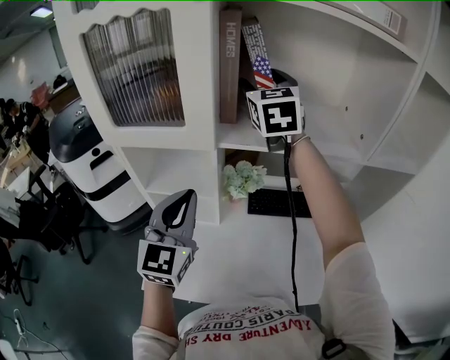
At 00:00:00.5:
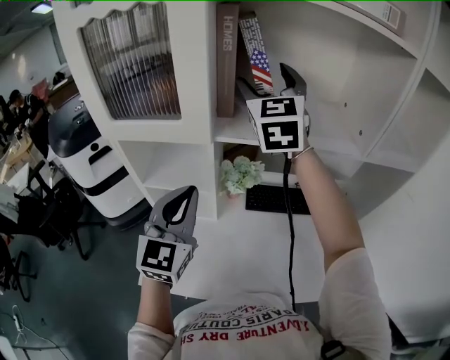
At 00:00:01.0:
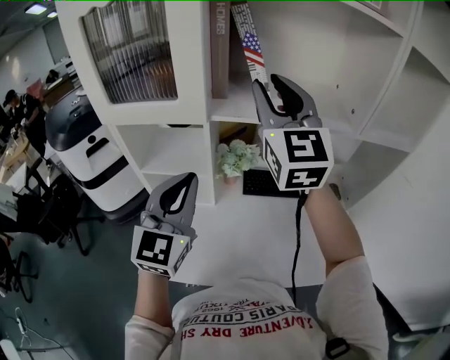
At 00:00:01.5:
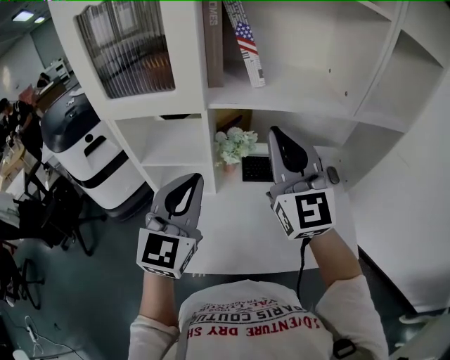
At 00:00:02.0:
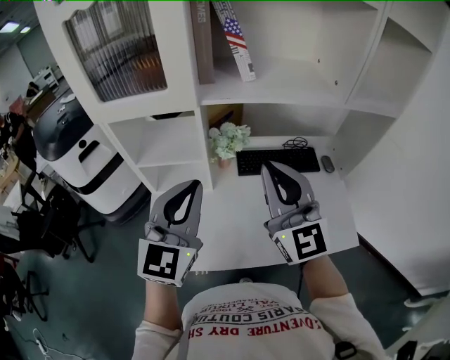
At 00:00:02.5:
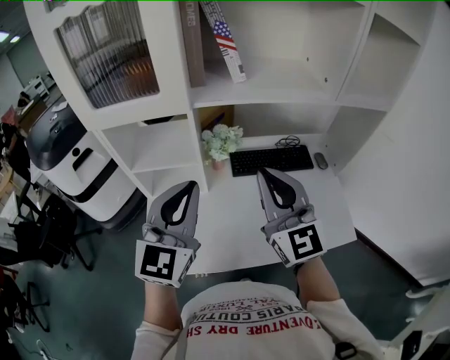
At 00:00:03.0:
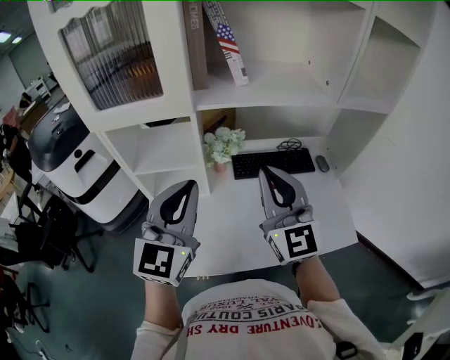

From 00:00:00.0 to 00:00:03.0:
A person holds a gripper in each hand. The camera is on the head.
From 00:00:00.0 to 00:00:01.5: The left gripper goes roughly 5 cm backward. Meanwhile the right gripper shifts approximately 25 cm backward, and closes its fingers.
From 00:00:01.5 to 00:00:03.0: The right gripper is displaced downward and backward by roughly 10 cm.

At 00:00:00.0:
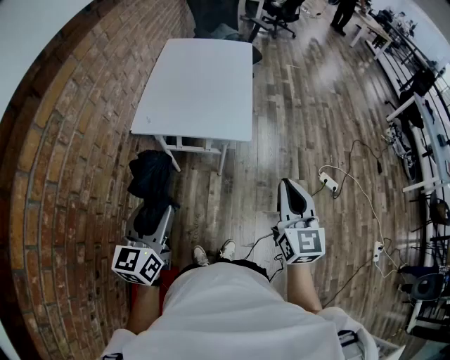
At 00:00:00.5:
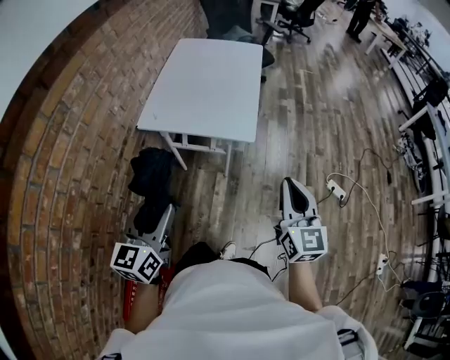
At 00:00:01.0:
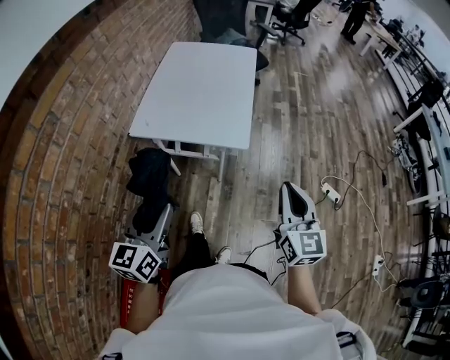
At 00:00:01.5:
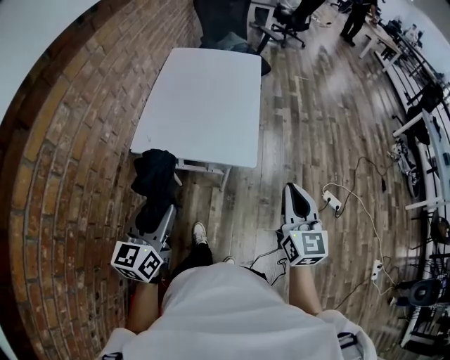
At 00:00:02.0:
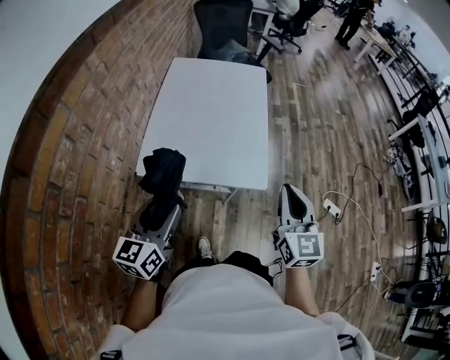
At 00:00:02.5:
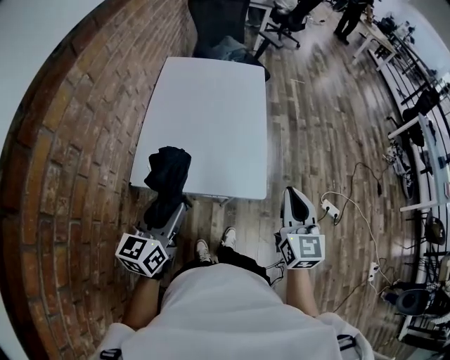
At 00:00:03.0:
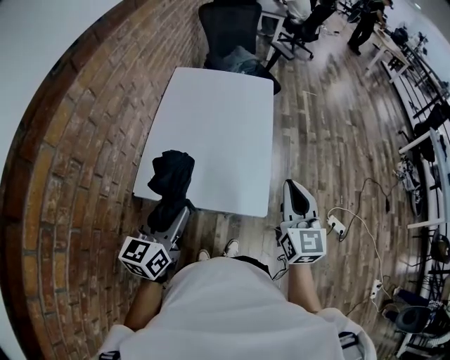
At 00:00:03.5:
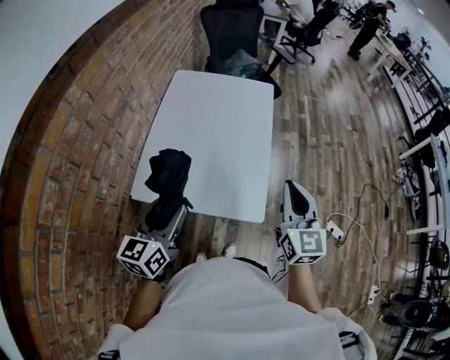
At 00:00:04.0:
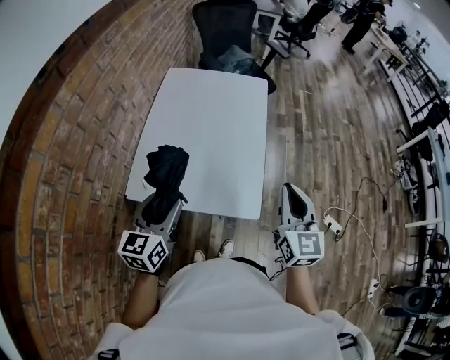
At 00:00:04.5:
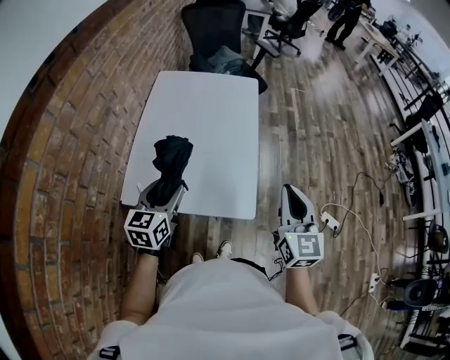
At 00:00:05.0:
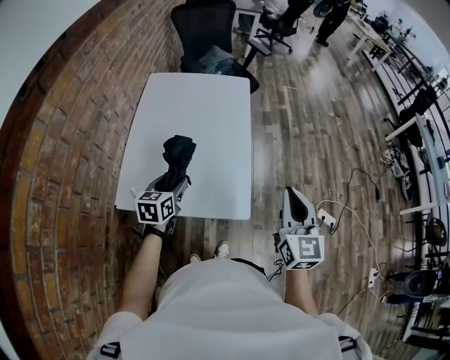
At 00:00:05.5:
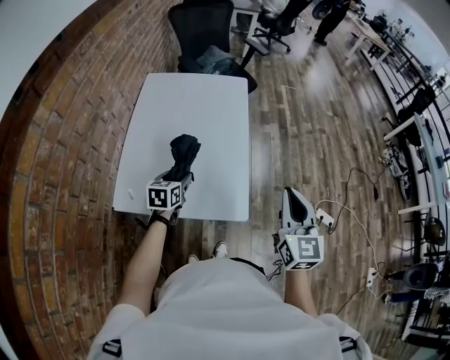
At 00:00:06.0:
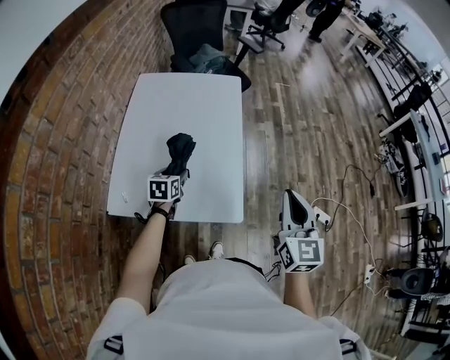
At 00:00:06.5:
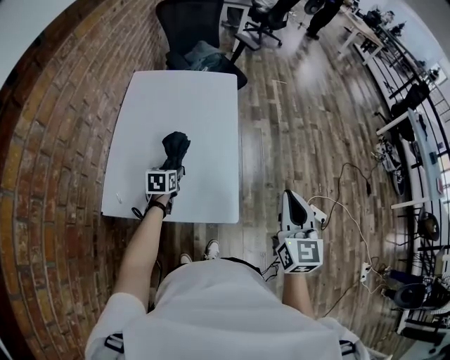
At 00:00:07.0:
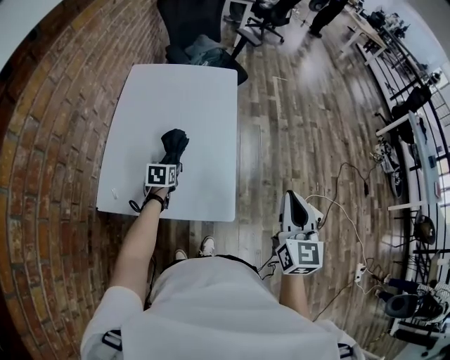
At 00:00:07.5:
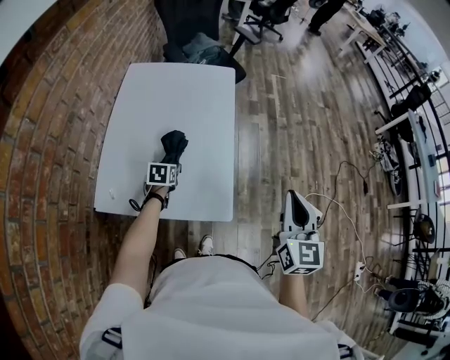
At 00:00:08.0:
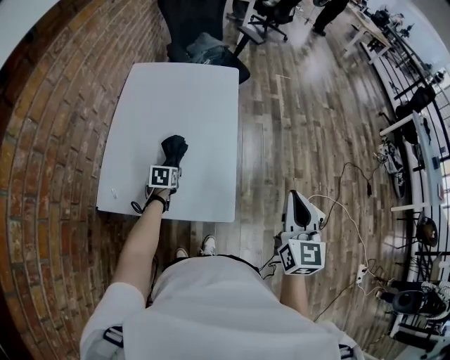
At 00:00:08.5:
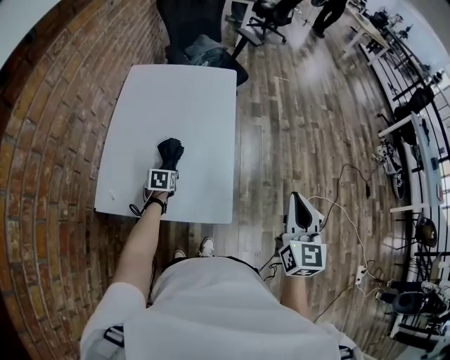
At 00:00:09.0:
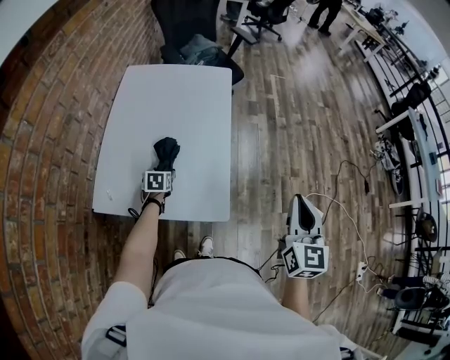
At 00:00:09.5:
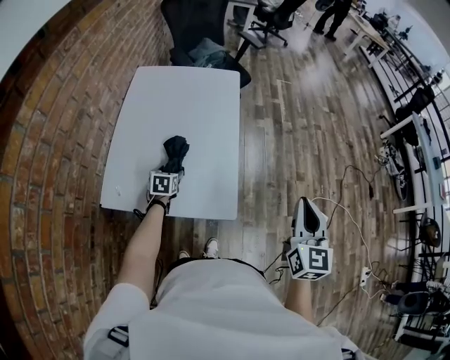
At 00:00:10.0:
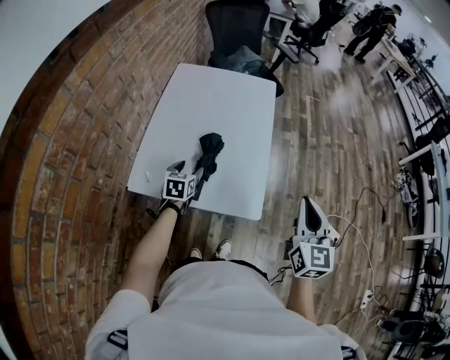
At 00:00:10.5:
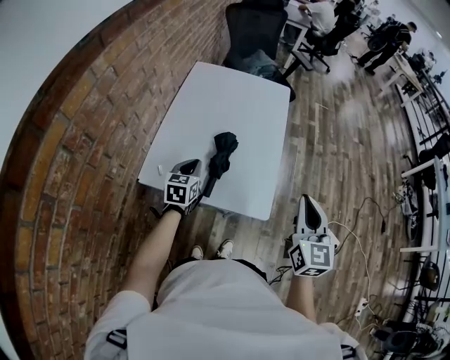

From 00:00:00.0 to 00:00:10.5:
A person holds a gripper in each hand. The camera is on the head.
From 00:00:00.0 to 00:00:02.0: The grippers both shift forward by about 20 cm.
From 00:00:02.0 to 00:00:04.0: The two grippers go about 15 cm forward.
From 00:00:04.0 to 00:00:06.5: The right gripper moves to the right, some 10 cm, while the left gripper travels downward and forward by roughly 30 cm, and turns by about 30 degrees.
From 00:00:06.5 to 00:00:08.5: The left gripper is displaced downward by some 5 cm.
From 00:00:08.5 to 00:00:10.5: The left gripper heads upward, backward and to the left, covering about 20 cm, turns by about 30 degrees, and closes its fingers, while the right gripper shifts some 10 cm to the left.

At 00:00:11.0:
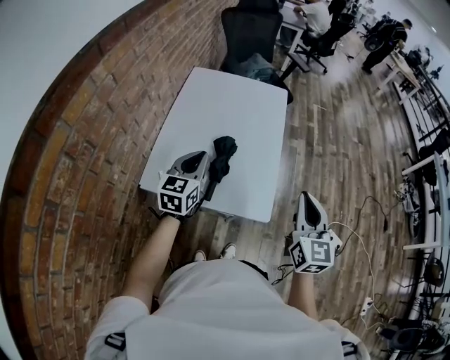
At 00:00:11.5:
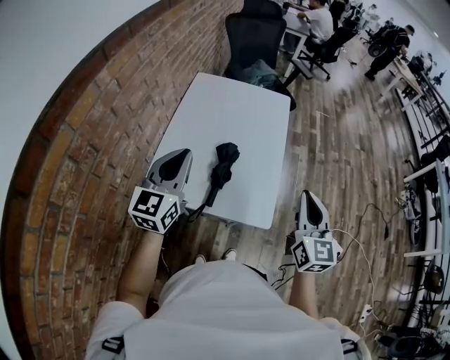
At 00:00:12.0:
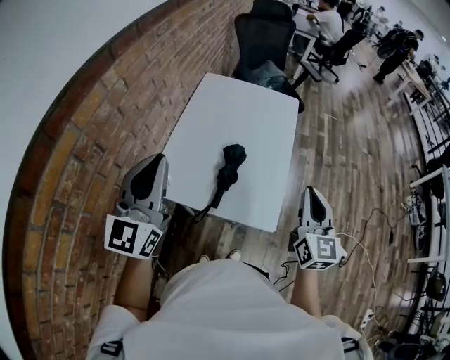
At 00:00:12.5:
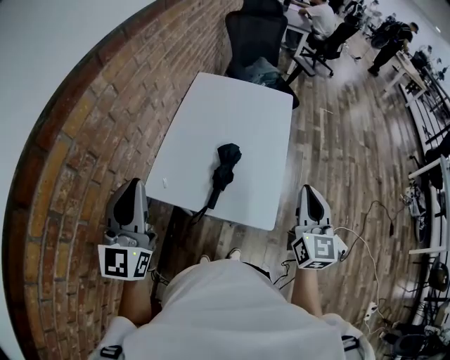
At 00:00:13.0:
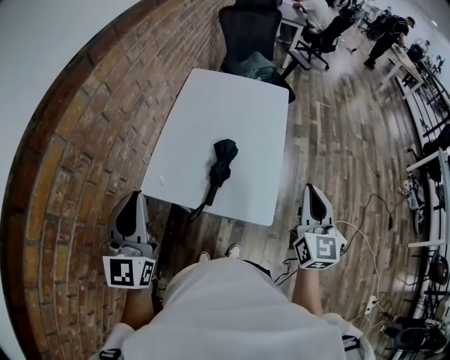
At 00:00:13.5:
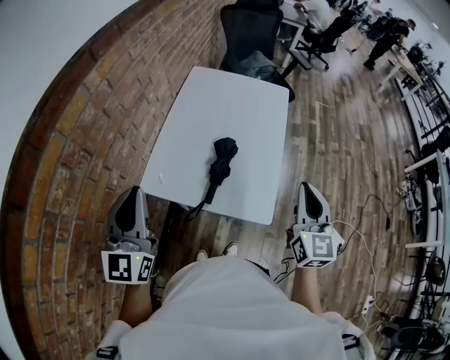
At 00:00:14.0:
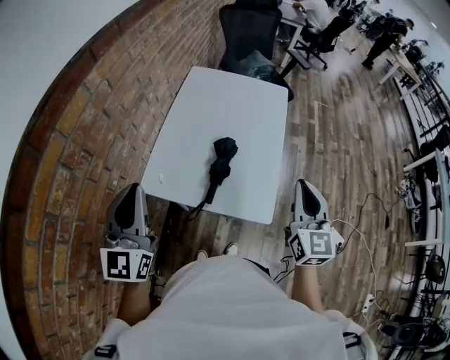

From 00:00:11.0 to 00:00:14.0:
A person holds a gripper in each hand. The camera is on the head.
From 00:00:11.0 to 00:00:12.5: The left gripper is displaced upward, backward and to the left by some 25 cm, and swivels approximately 30 degrees.
From 00:00:12.5 to 00:00:14.0: There are only small adjustments of the grippers.

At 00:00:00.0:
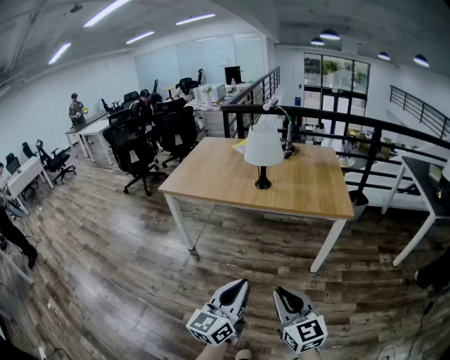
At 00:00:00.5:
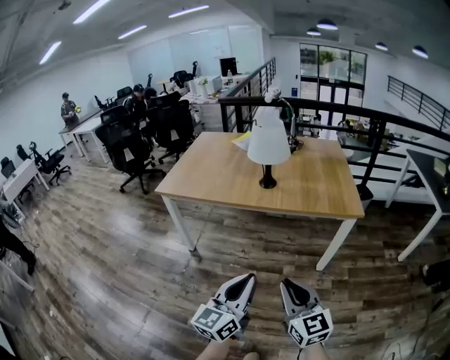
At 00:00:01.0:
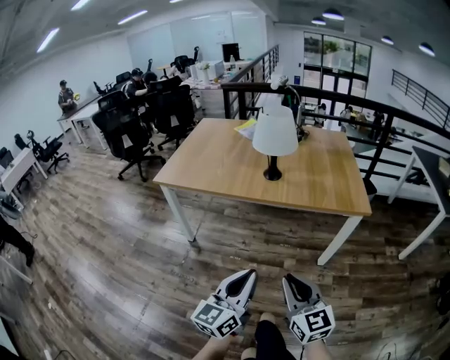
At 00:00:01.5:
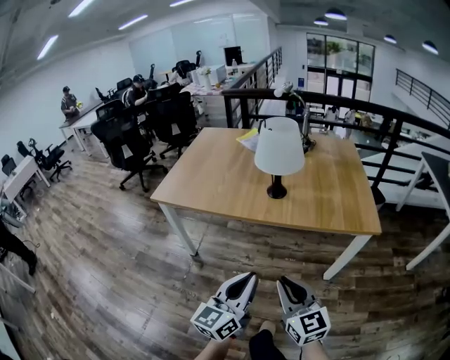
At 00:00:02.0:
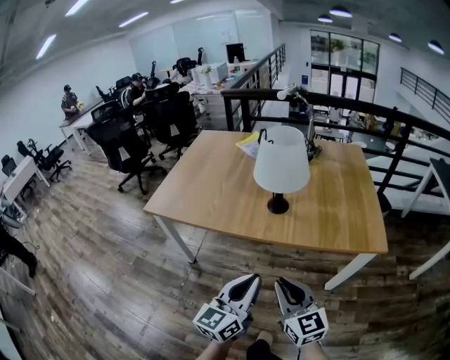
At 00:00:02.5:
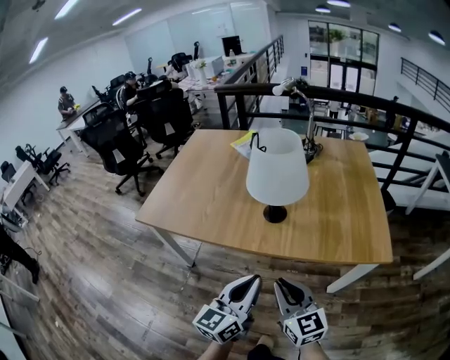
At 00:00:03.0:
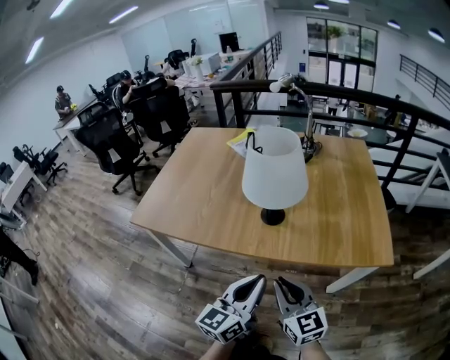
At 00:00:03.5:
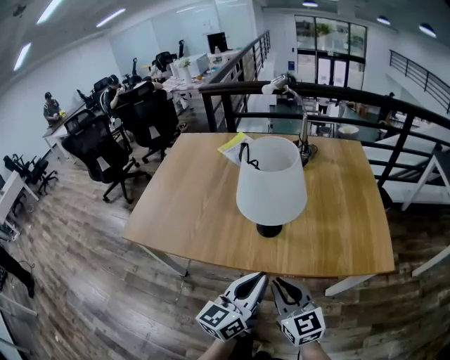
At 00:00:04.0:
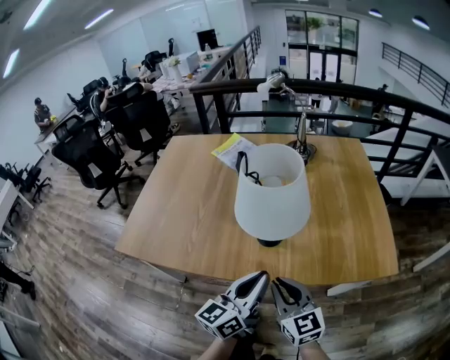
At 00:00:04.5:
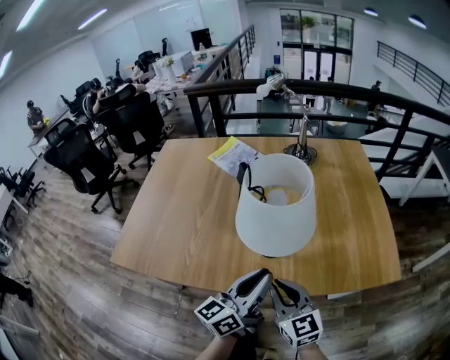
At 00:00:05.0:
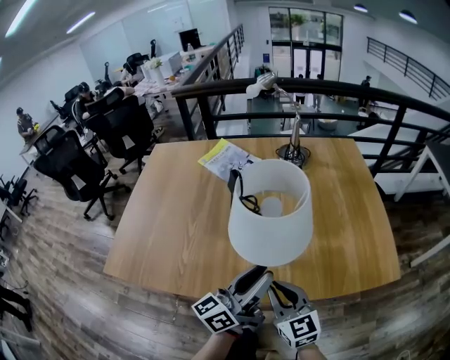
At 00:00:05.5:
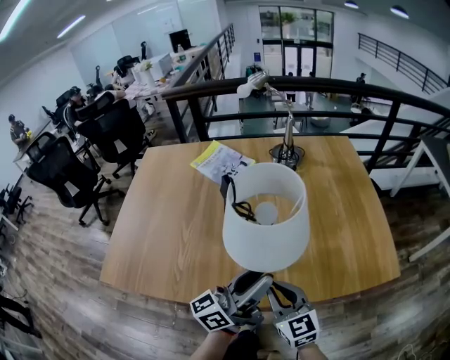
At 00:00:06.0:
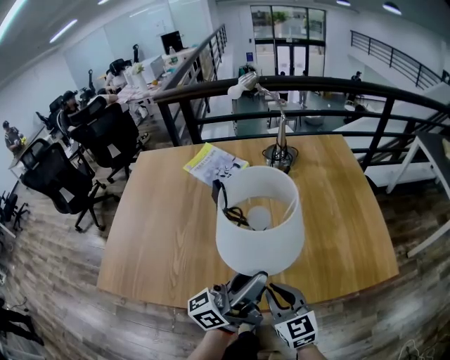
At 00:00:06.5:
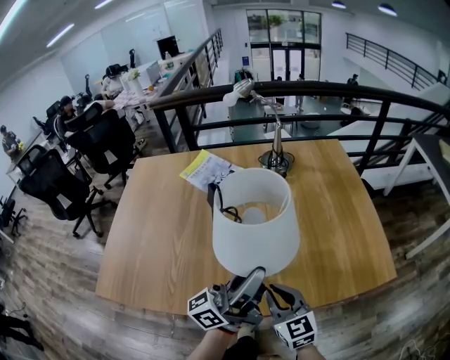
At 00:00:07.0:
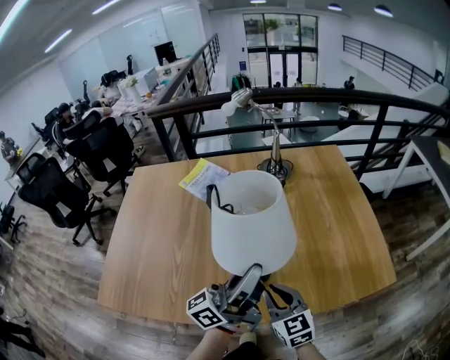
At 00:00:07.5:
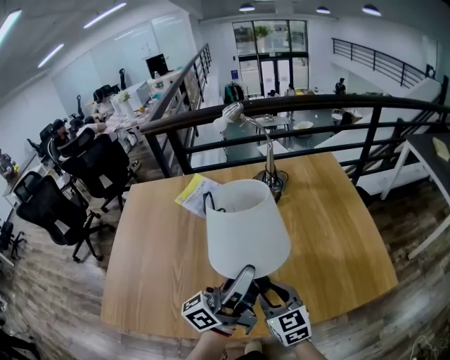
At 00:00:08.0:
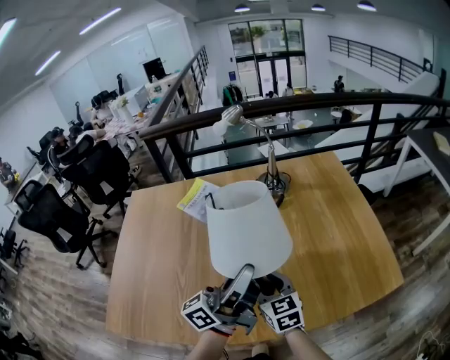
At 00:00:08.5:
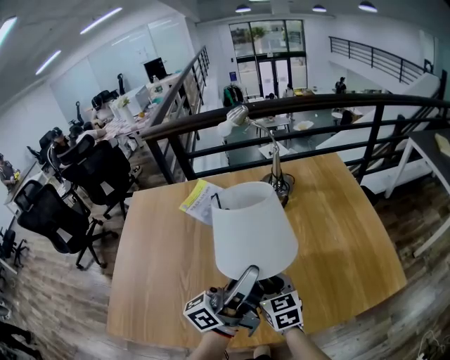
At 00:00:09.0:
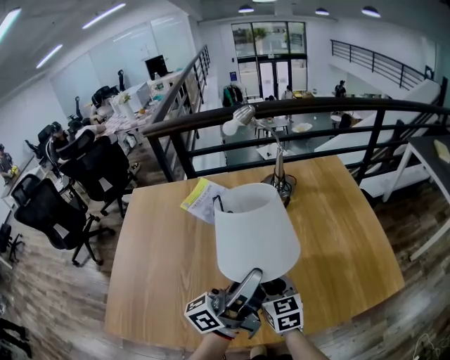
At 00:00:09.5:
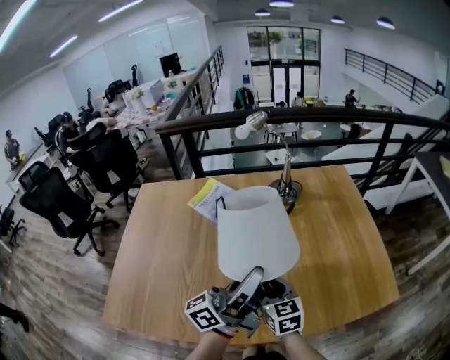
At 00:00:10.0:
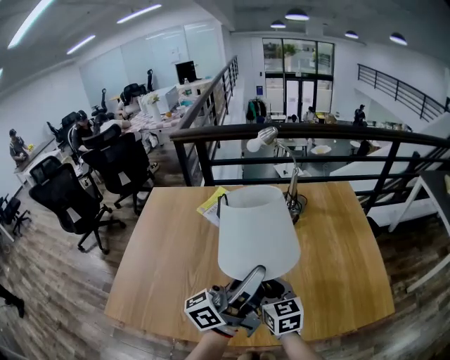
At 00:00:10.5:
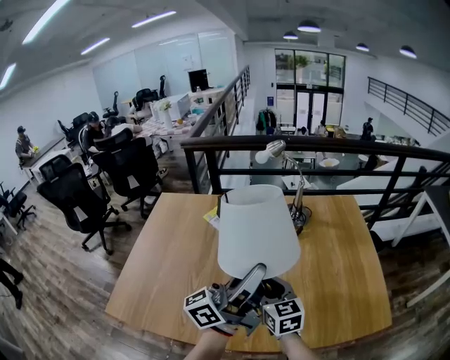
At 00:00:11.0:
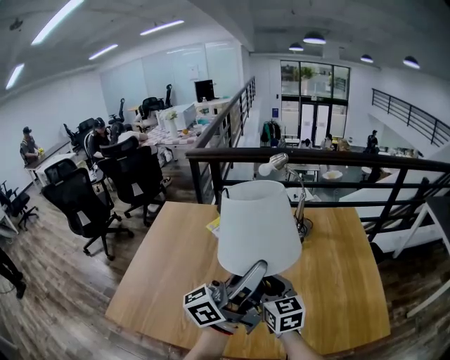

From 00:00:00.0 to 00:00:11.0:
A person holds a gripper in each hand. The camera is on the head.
From 00:00:00.0 to 00:00:02.0: The grippers both shift forward by roughly 35 cm.
From 00:00:02.0 to 00:00:03.5: Both grippers move forward, about 15 cm.
From 00:00:03.5 to 00:00:05.5: Both grippers move forward, about 15 cm. The left gripper changes its angle by some 40 degrees, and opens.
From 00:00:05.5 to 00:00:07.5: The left gripper shifts roughly 10 cm forward and upward, and closes; the right gripper goes roughly 10 cm forward.
From 00:00:07.5 to 00:00:09.0: The right gripper is displaced forward by about 5 cm.
From 00:00:09.0 to 00:00:11.0: The grippers both shift upward by some 15 cm.
